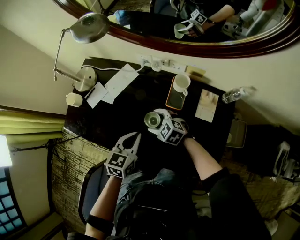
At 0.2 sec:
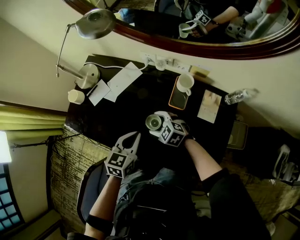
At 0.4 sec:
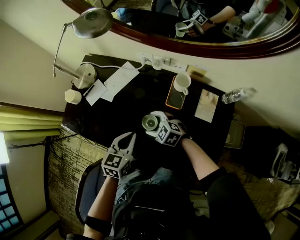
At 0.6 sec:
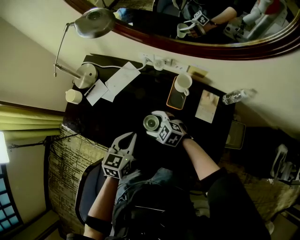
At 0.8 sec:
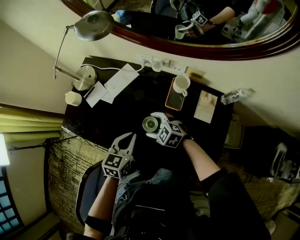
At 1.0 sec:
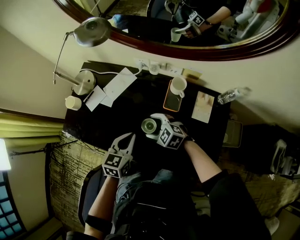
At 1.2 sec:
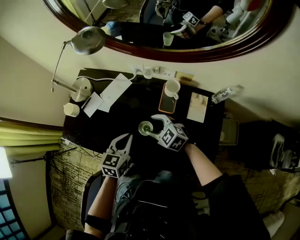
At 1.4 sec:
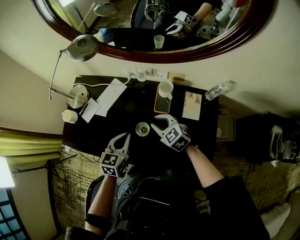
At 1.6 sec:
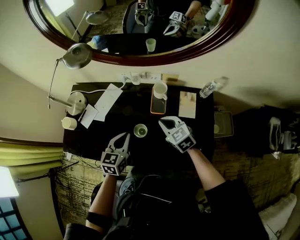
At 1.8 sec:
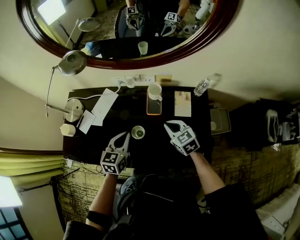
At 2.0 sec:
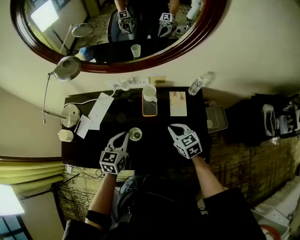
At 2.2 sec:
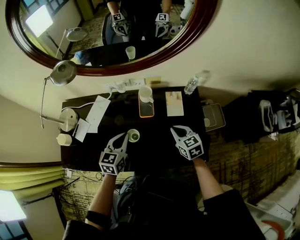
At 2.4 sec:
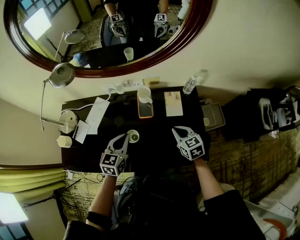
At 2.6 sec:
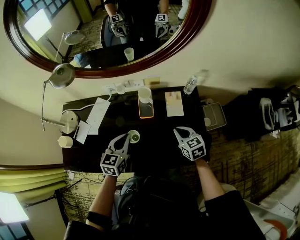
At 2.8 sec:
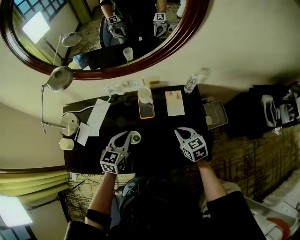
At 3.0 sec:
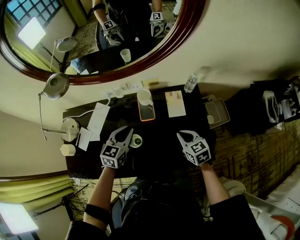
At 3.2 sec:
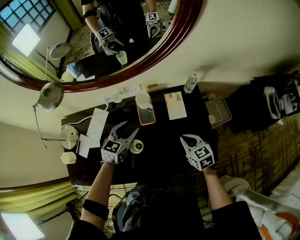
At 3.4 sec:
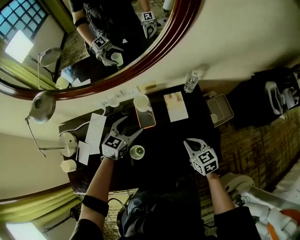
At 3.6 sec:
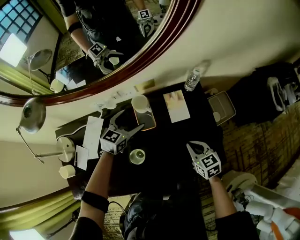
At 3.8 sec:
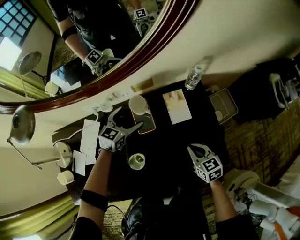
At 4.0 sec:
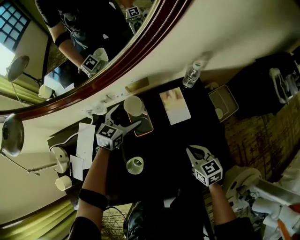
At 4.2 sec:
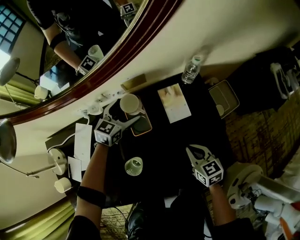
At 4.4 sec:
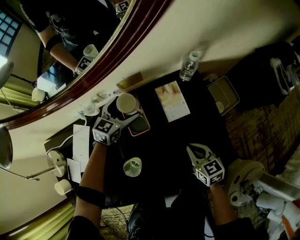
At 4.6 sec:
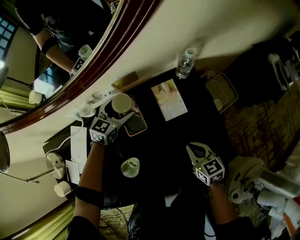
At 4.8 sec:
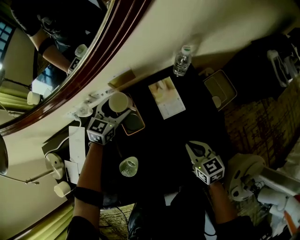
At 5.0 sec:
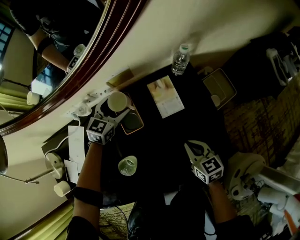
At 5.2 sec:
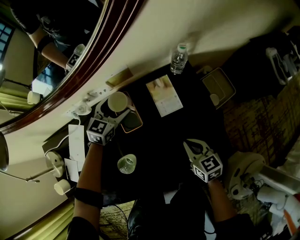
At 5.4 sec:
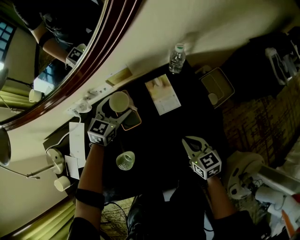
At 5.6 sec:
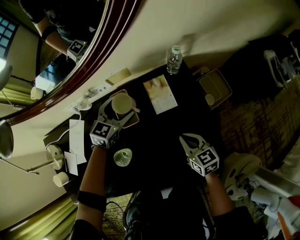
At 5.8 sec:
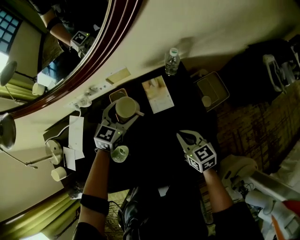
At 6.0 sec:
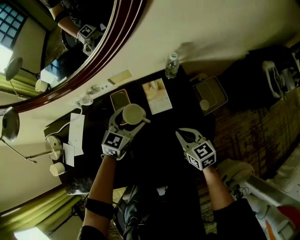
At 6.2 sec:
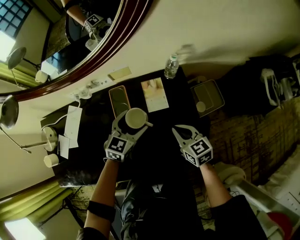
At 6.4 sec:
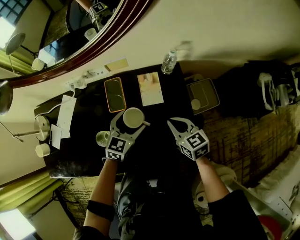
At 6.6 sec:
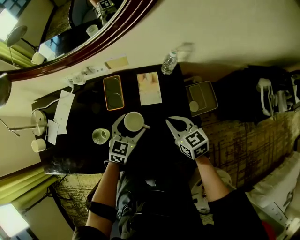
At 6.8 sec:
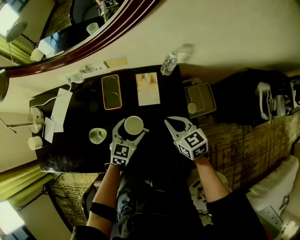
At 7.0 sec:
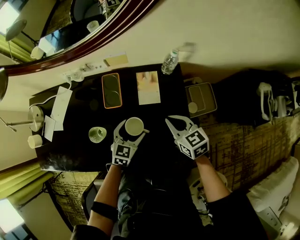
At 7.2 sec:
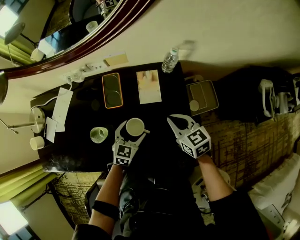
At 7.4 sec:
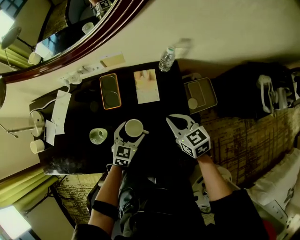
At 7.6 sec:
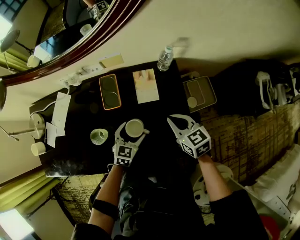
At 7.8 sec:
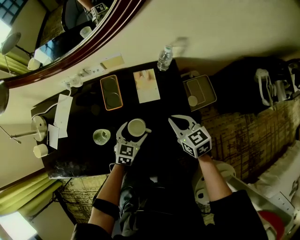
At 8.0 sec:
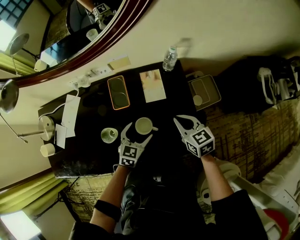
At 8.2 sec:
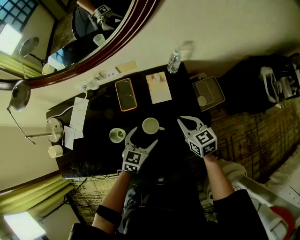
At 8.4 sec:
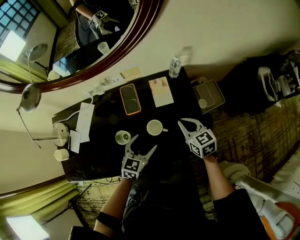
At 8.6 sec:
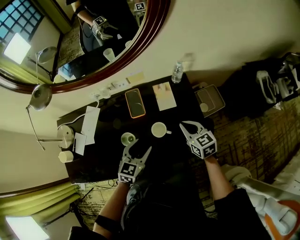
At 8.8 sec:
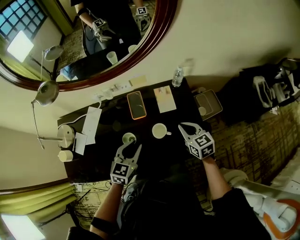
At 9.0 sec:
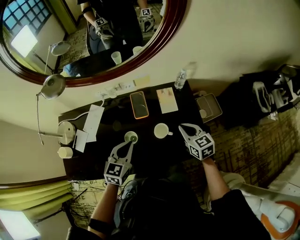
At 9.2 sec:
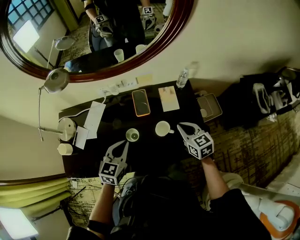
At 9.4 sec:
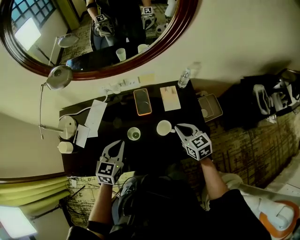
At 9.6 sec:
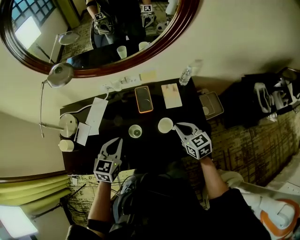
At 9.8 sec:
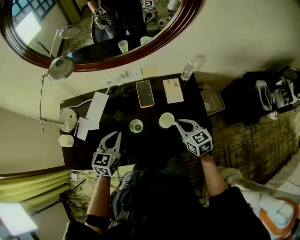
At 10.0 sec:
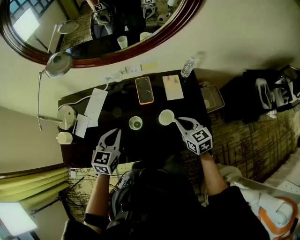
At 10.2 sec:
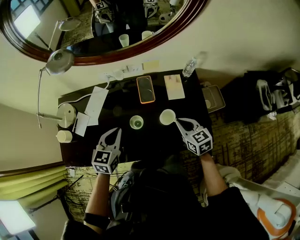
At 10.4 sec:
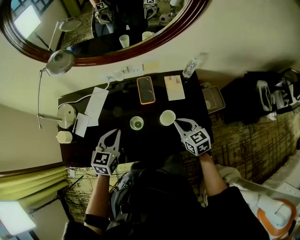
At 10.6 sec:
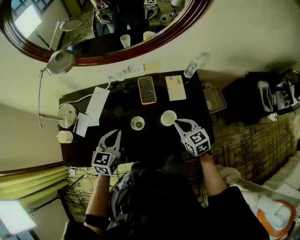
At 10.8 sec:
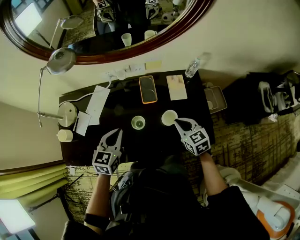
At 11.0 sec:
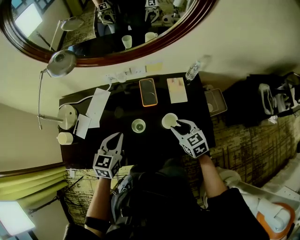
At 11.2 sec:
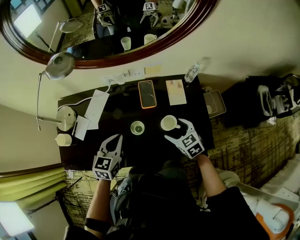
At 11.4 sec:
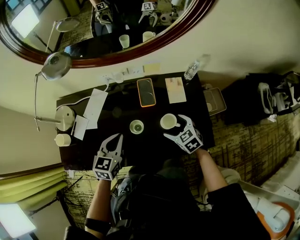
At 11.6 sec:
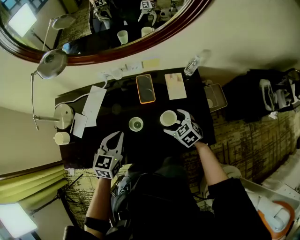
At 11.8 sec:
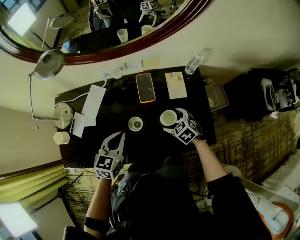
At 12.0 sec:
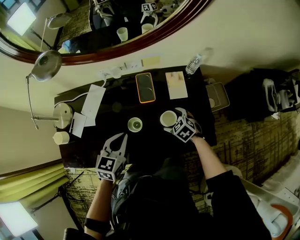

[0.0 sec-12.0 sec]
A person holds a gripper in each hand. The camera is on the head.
0.0 sec to 1.6 sec: The right gripper travels upward and to the right by some 15 cm, swivels roughly 30 degrees, and closes.
1.6 sec to 3.0 sec: The left gripper moves forward and to the right, approximately 10 cm, and turns by roughly 20 degrees. Meanwhile the right gripper heads to the right and backward, covering about 15 cm, and turns by about 30 degrees.
3.0 sec to 4.4 sec: The right gripper moves downward, some 10 cm, while the left gripper travels forward and downward by about 30 cm, swivels some 20 degrees, and opens up.
4.4 sec to 6.0 sec: The left gripper is displaced to the right, upward and backward by some 20 cm, while the right gripper heads upward, covering roughly 5 cm.
6.0 sec to 7.6 sec: The left gripper travels backward and downward by some 15 cm.
7.6 sec to 9.0 sec: The right gripper moves upward, to the left and backward, some 10 cm; the left gripper is displaced upward and to the left by some 25 cm, and closes its fingers.
9.0 sec to 10.4 sec: Both grippers travel together to the left, some 10 cm.
10.4 sec to 12.0 sec: The right gripper moves downward, about 15 cm, changes its angle by approximately 30 degrees, and opens up.

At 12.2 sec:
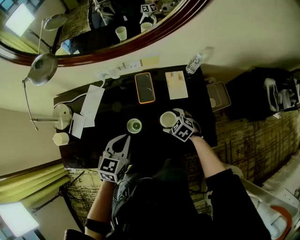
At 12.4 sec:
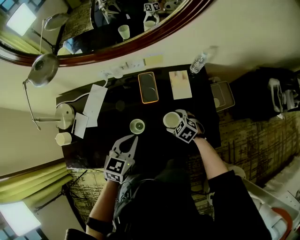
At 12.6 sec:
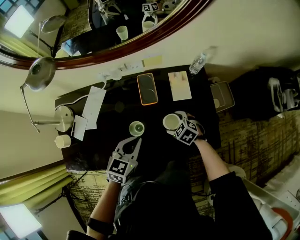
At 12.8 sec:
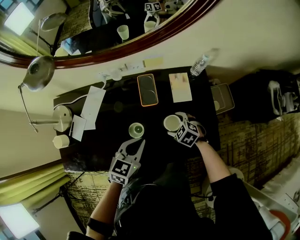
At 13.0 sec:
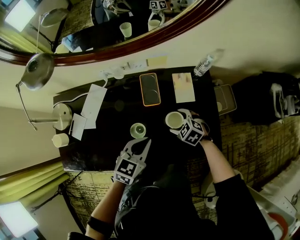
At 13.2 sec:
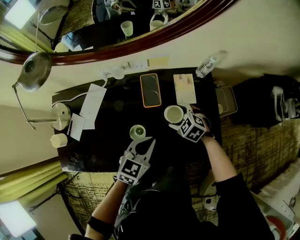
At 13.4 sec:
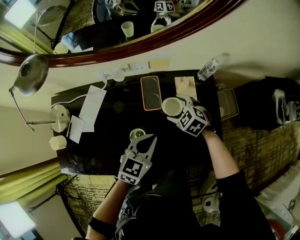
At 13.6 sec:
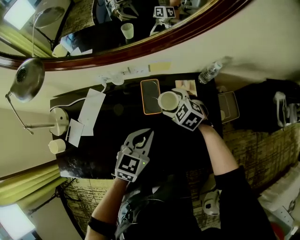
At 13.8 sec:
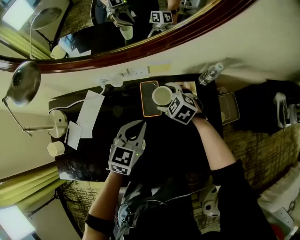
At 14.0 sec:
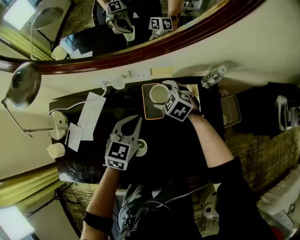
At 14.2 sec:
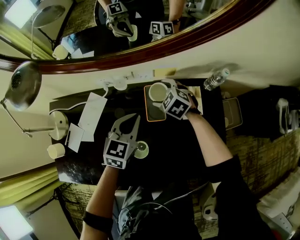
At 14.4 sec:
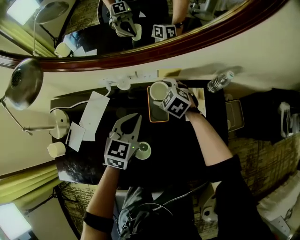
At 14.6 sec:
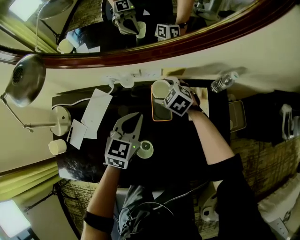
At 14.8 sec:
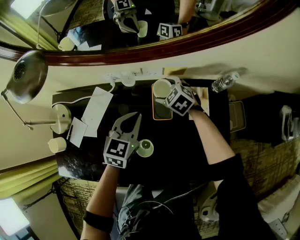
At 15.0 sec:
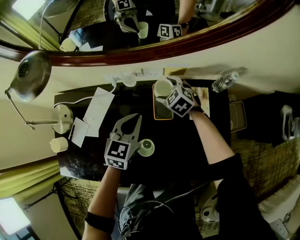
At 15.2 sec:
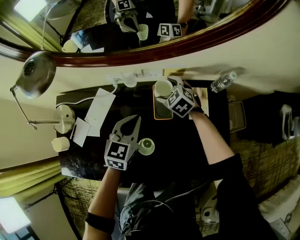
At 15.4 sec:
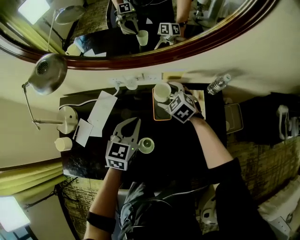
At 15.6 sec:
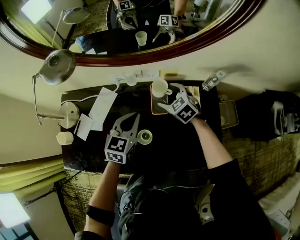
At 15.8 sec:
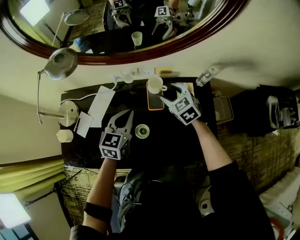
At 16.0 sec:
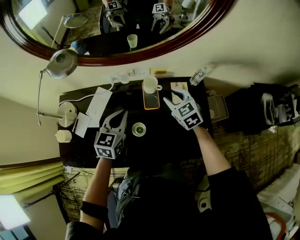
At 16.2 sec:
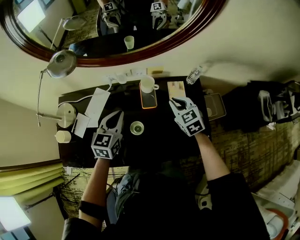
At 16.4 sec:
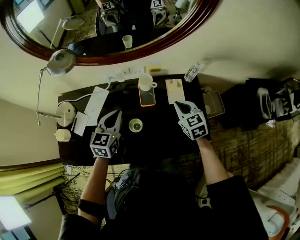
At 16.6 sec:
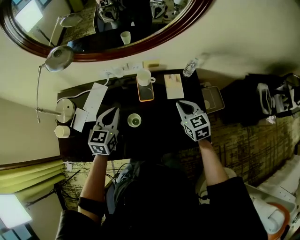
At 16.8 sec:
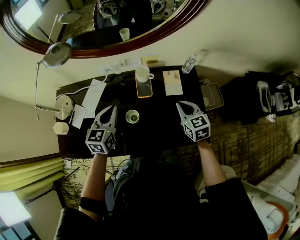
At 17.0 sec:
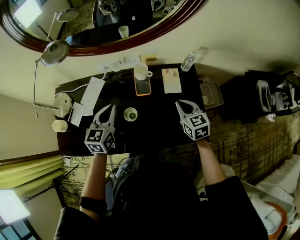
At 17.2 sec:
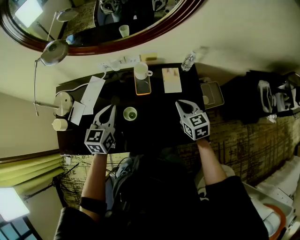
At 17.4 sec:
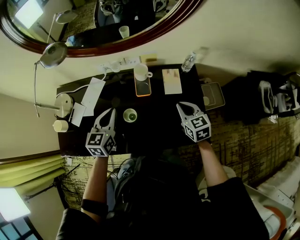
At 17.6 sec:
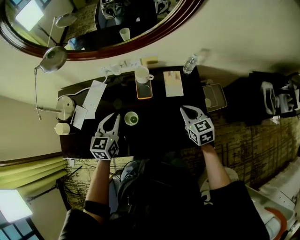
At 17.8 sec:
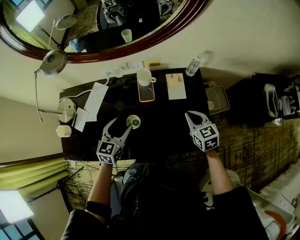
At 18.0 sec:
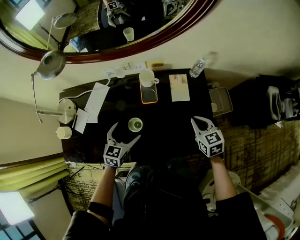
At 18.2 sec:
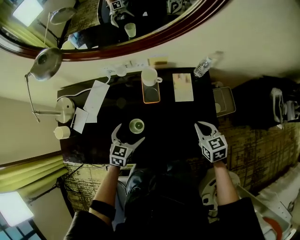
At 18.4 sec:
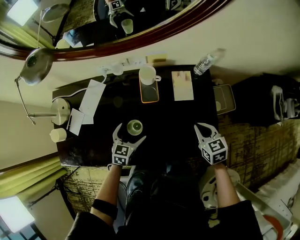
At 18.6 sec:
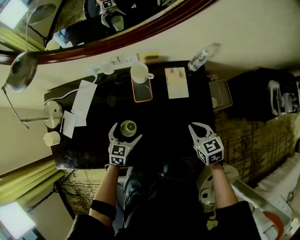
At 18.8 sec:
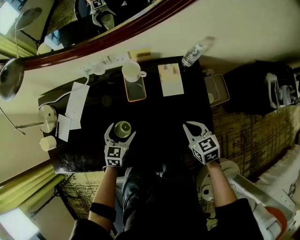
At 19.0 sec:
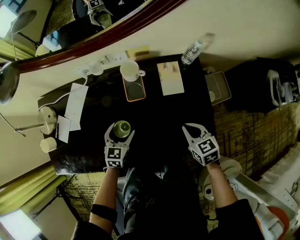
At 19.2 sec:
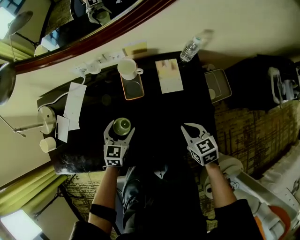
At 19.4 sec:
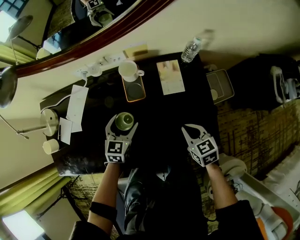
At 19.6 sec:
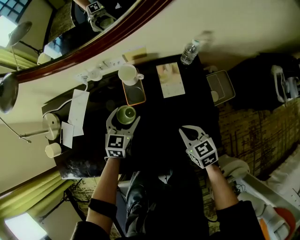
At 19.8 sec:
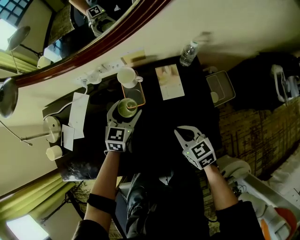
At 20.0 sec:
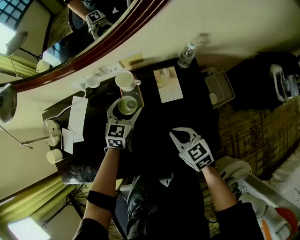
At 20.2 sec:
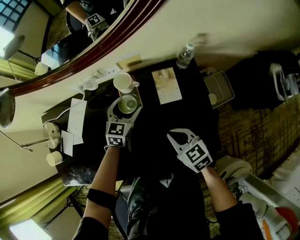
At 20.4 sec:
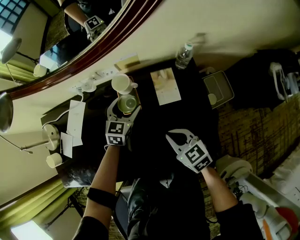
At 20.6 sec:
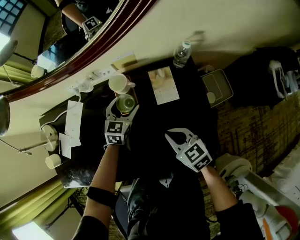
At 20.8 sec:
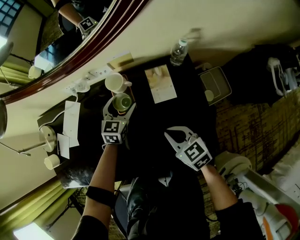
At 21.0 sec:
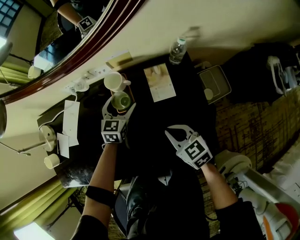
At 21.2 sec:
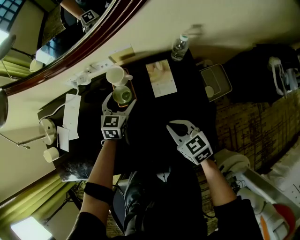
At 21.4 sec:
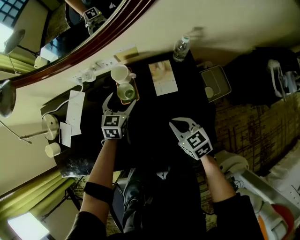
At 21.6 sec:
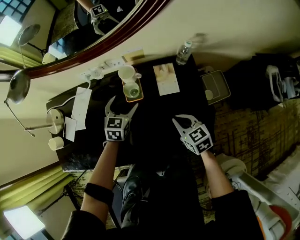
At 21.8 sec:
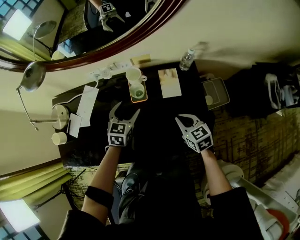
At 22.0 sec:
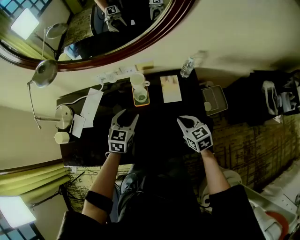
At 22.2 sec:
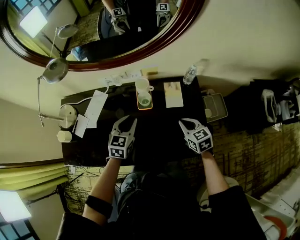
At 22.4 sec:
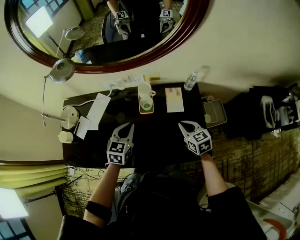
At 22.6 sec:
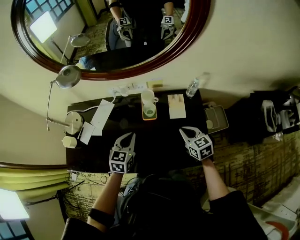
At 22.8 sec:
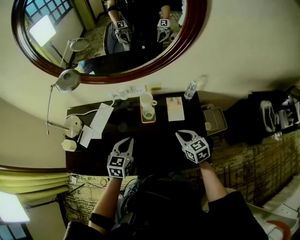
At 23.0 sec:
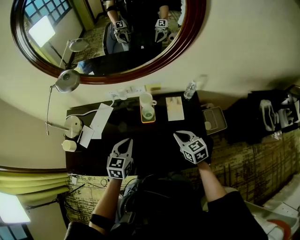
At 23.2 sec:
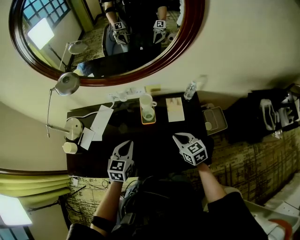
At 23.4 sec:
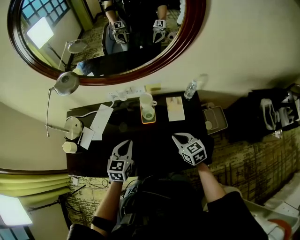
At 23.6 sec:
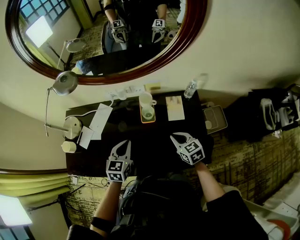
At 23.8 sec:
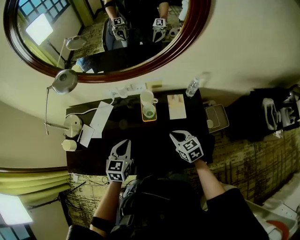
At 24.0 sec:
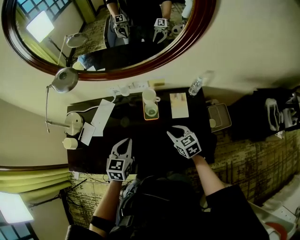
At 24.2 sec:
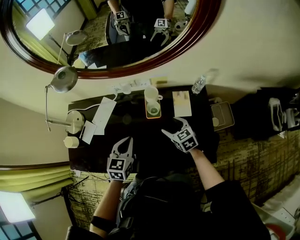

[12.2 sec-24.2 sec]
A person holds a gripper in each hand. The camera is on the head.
12.2 sec to 13.8 sec: The right gripper shifts about 20 cm forward. The left gripper goes approximately 15 cm forward and to the right.
13.8 sec to 15.2 sec: The right gripper goes roughly 5 cm forward; the left gripper is displaced to the left by about 5 cm.
15.2 sec to 16.6 sec: The right gripper goes some 30 cm backward, upward and to the right, changes its angle by approximately 30 degrees, and closes its fingers. The left gripper moves backward and upward, approximately 10 cm.
16.6 sec to 18.2 sec: The left gripper is displaced downward by roughly 15 cm, and opens its fingers. The right gripper is displaced downward and to the right by approximately 10 cm.
18.2 sec to 19.8 sec: The left gripper shifts some 15 cm forward and to the right, while the right gripper moves to the left and downward, about 10 cm.
19.8 sec to 21.2 sec: The left gripper shifts by roughly 5 cm.
21.2 sec to 22.6 sec: The right gripper moves upward, roughly 10 cm. The left gripper shifts some 25 cm backward, upward and to the left, and closes.
22.6 sec to 24.2 sec: The right gripper heads to the left, downward and forward, covering about 10 cm, and opens up.
